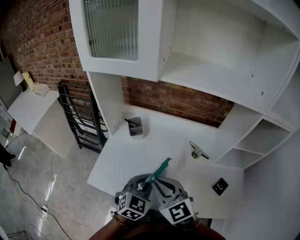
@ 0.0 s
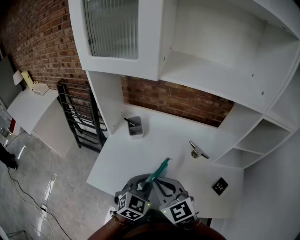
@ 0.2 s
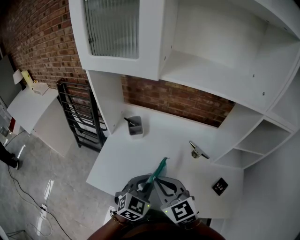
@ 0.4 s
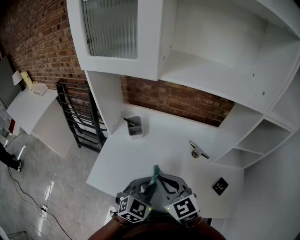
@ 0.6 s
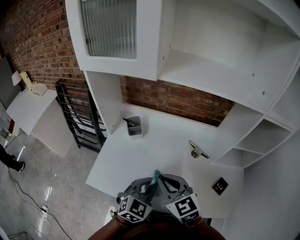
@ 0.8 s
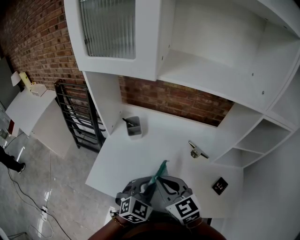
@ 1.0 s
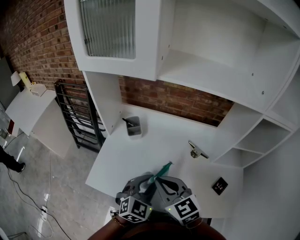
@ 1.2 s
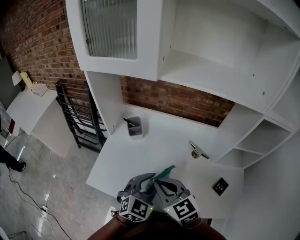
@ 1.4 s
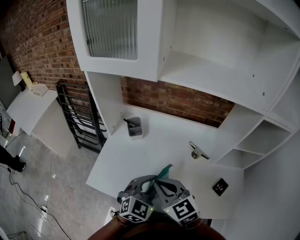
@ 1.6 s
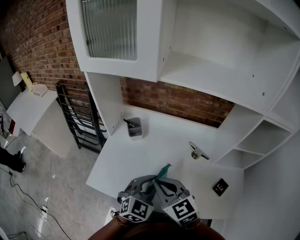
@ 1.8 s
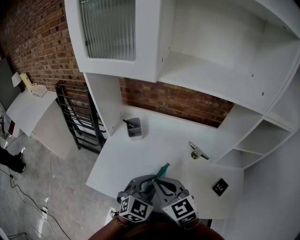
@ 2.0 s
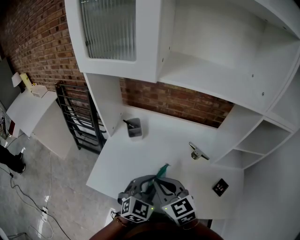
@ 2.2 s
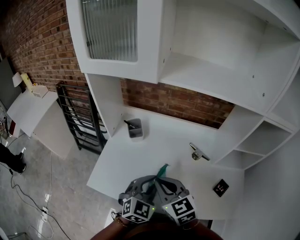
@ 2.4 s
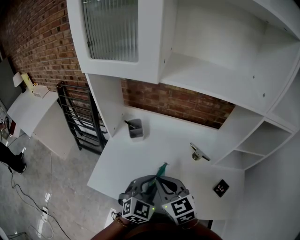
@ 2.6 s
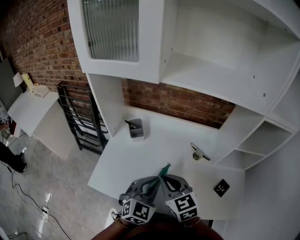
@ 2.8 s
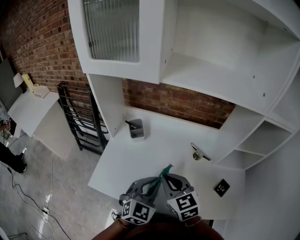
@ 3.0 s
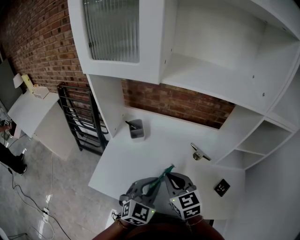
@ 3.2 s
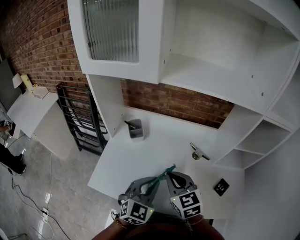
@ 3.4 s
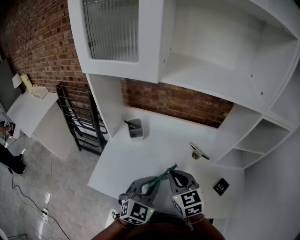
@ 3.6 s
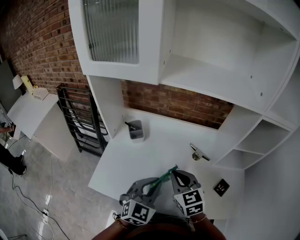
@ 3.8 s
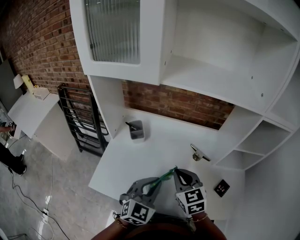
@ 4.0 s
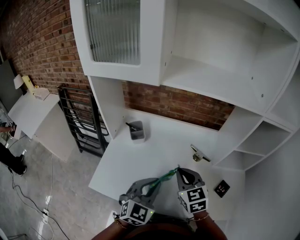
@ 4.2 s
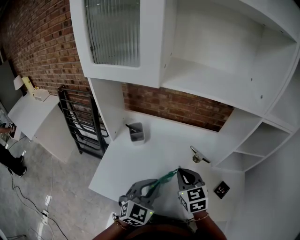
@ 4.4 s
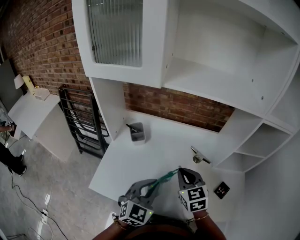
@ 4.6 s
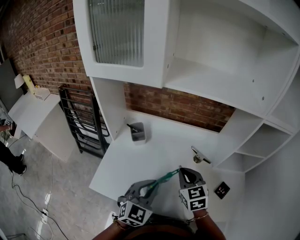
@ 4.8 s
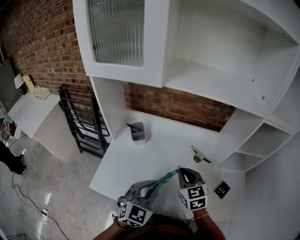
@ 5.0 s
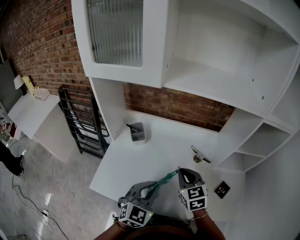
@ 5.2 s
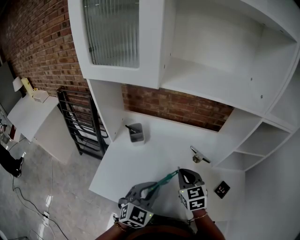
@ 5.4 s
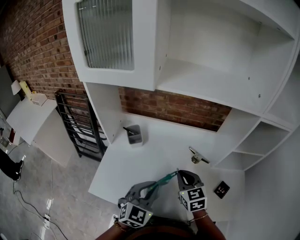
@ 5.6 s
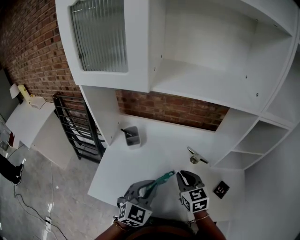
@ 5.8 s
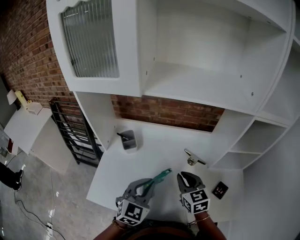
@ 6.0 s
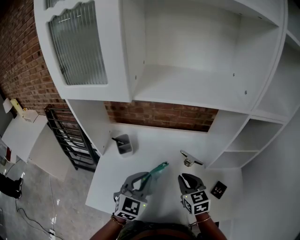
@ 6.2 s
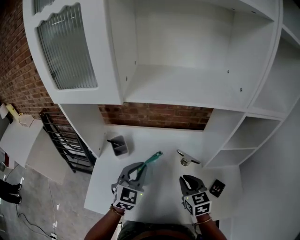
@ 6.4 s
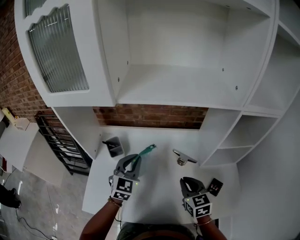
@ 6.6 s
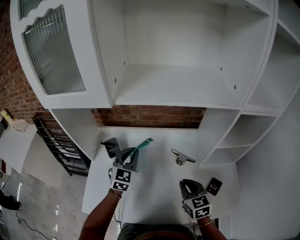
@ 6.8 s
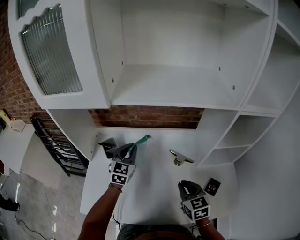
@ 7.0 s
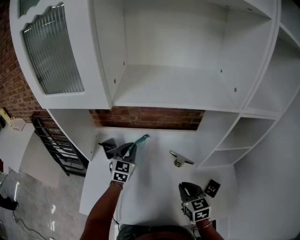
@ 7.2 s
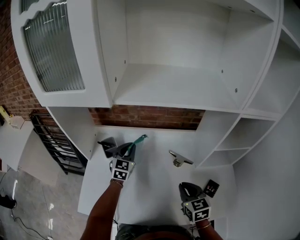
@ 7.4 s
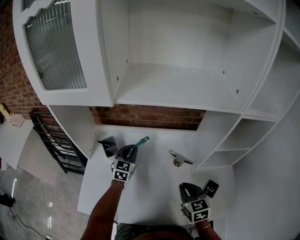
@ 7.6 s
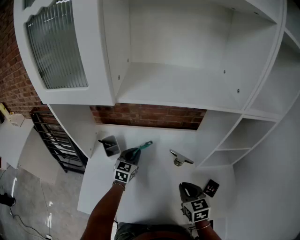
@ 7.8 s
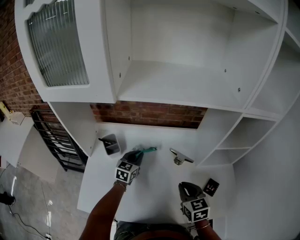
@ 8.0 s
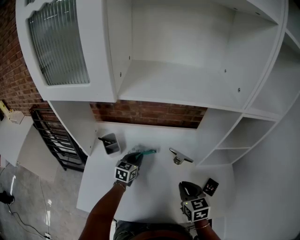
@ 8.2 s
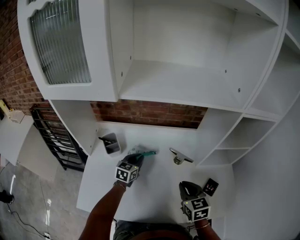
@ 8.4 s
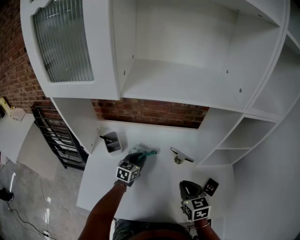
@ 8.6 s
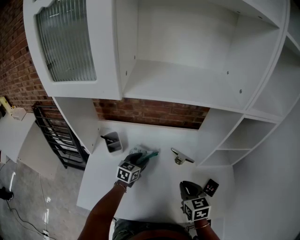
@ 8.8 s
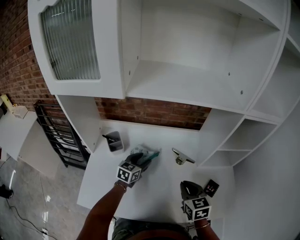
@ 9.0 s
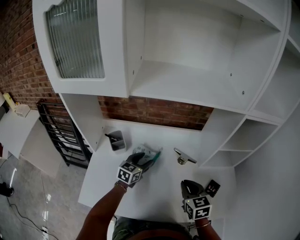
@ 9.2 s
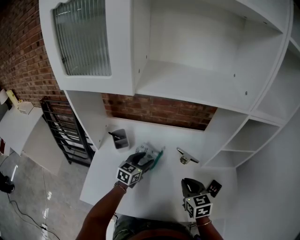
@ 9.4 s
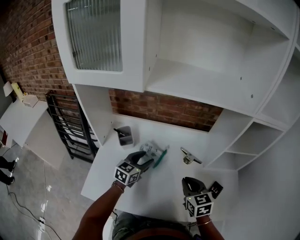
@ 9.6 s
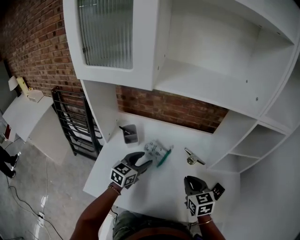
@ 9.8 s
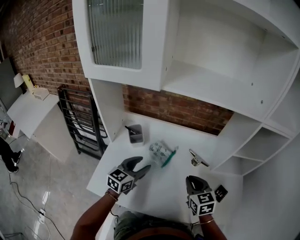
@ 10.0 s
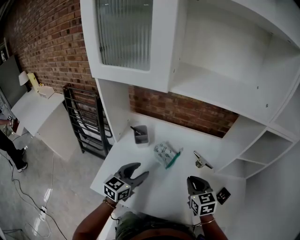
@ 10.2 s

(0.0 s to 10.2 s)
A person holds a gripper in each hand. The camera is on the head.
0.0 s - 3.0 s: There are only small adjustments of the grippers.
3.0 s - 4.4 s: The right gripper shifts about 5 cm to the right.
4.4 s - 5.8 s: The grippers make only small movements.
5.8 s - 7.2 s: The right gripper goes roughly 10 cm to the right. Meanwhile the left gripper shifts roughly 25 cm forward.
7.2 s - 8.8 s: The left gripper heads downward, covering approximately 10 cm, and rotates about 30 degrees.
8.8 s - 10.2 s: The left gripper goes some 20 cm backward, upward and to the left. The right gripper travels to the left by roughly 5 cm.

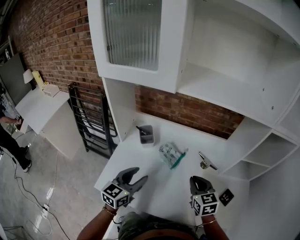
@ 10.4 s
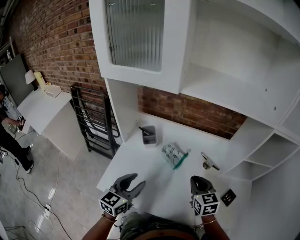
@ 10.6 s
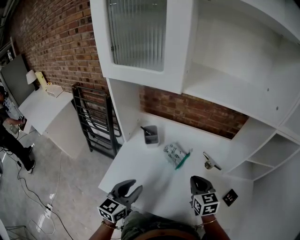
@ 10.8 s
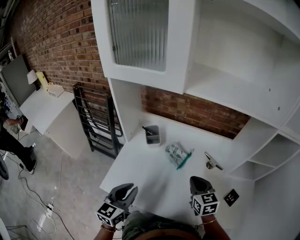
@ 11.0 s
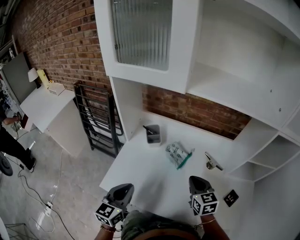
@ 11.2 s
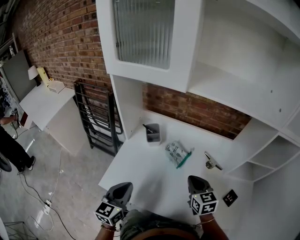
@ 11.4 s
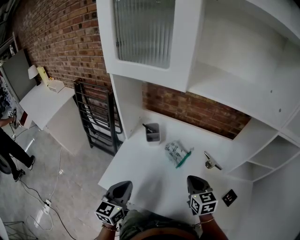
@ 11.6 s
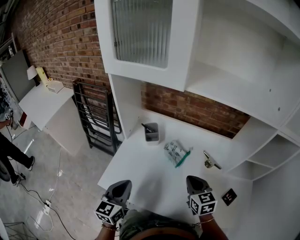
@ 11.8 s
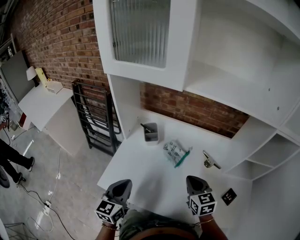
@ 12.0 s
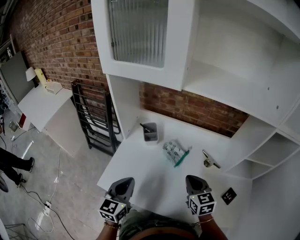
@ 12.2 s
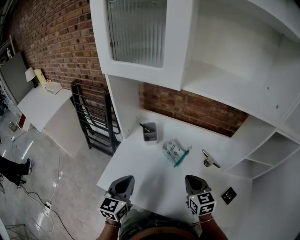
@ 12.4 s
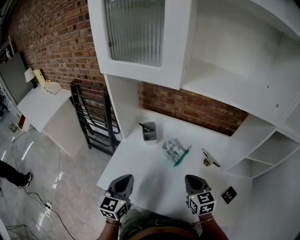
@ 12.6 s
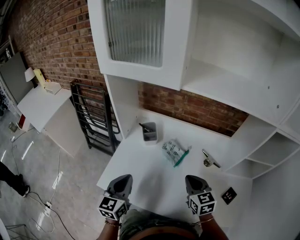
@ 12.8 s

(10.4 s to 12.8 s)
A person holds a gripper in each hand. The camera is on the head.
10.4 s - 11.6 s: The left gripper goes approximately 10 cm backward and to the left, and closes.
11.6 s - 12.8 s: The grippers stay close to where they were, moving slightly.

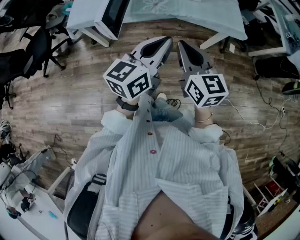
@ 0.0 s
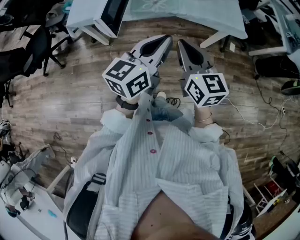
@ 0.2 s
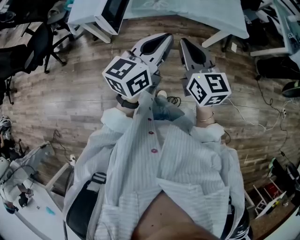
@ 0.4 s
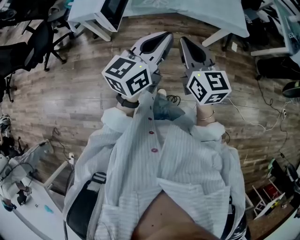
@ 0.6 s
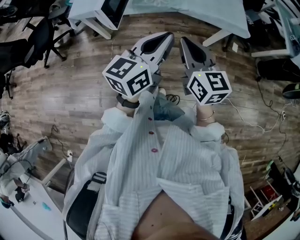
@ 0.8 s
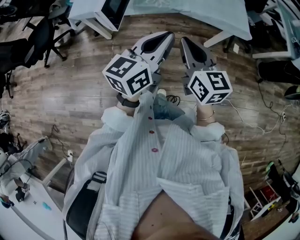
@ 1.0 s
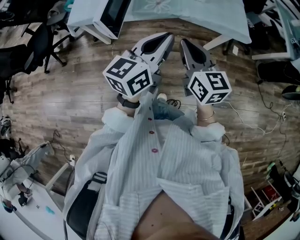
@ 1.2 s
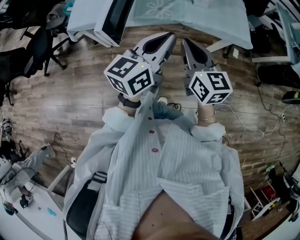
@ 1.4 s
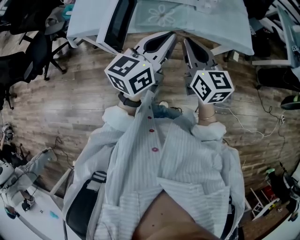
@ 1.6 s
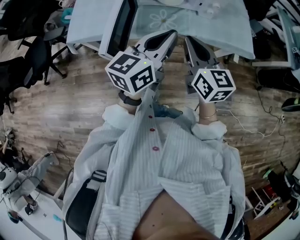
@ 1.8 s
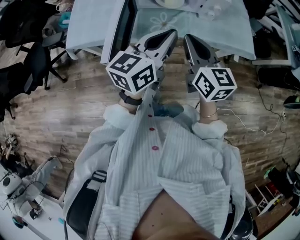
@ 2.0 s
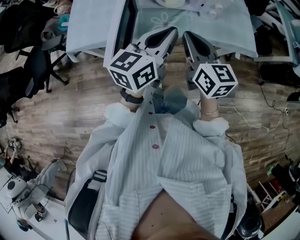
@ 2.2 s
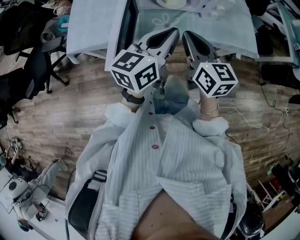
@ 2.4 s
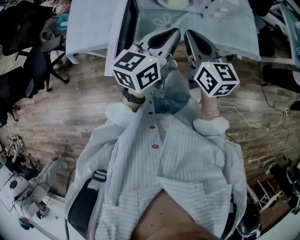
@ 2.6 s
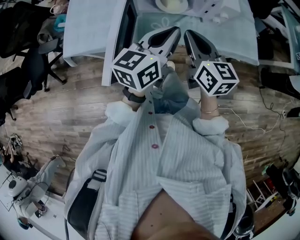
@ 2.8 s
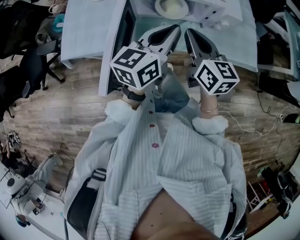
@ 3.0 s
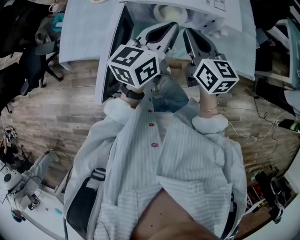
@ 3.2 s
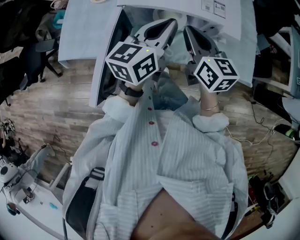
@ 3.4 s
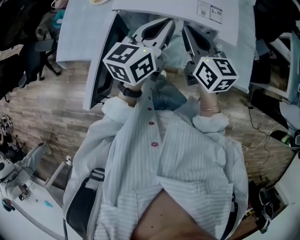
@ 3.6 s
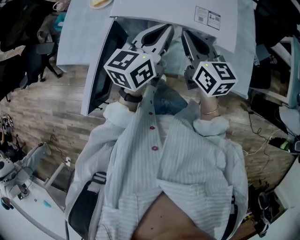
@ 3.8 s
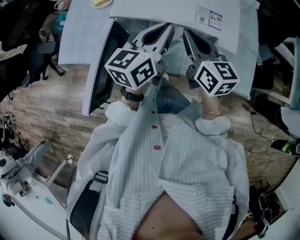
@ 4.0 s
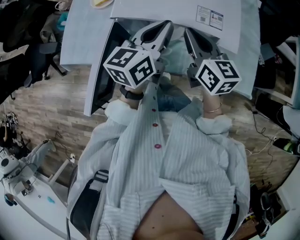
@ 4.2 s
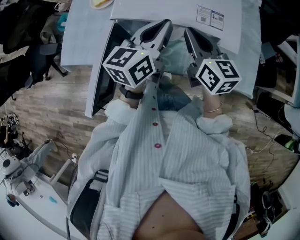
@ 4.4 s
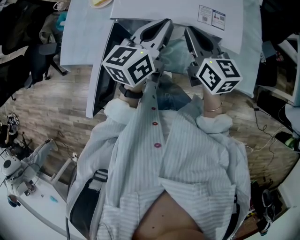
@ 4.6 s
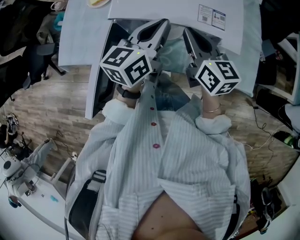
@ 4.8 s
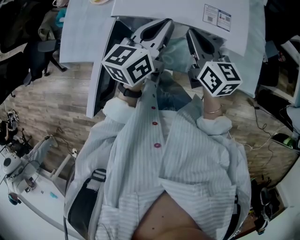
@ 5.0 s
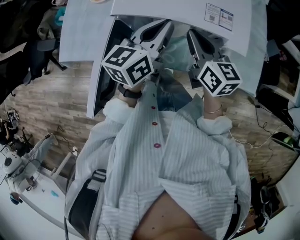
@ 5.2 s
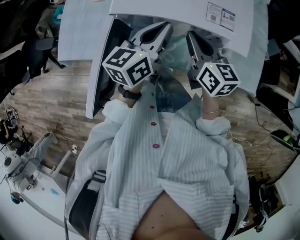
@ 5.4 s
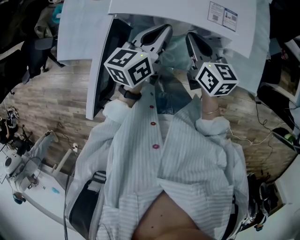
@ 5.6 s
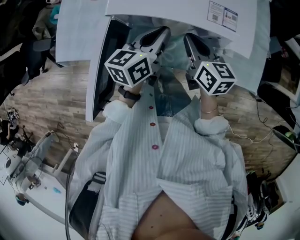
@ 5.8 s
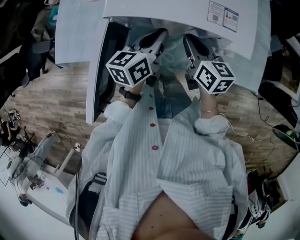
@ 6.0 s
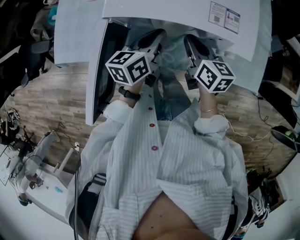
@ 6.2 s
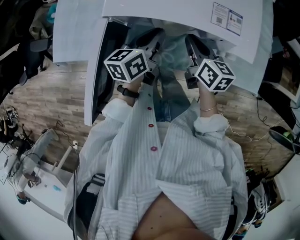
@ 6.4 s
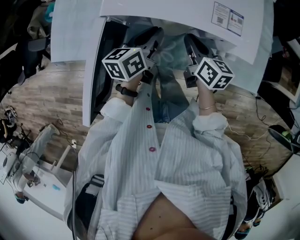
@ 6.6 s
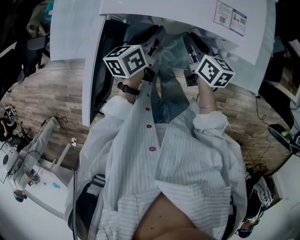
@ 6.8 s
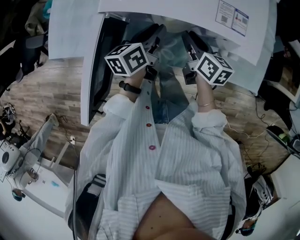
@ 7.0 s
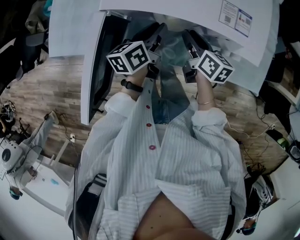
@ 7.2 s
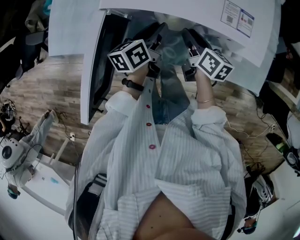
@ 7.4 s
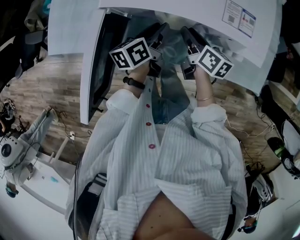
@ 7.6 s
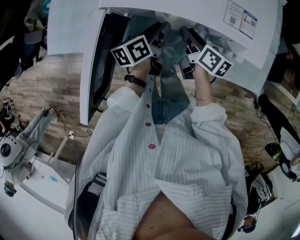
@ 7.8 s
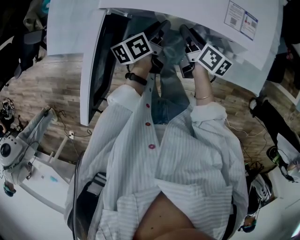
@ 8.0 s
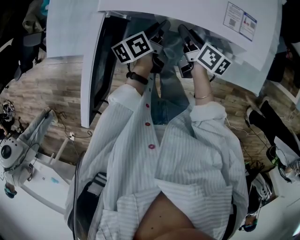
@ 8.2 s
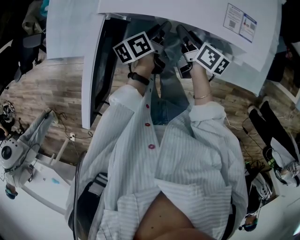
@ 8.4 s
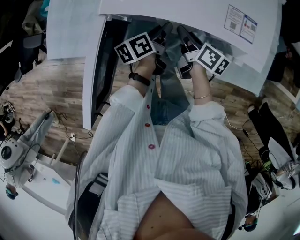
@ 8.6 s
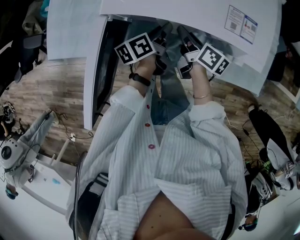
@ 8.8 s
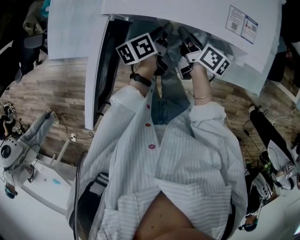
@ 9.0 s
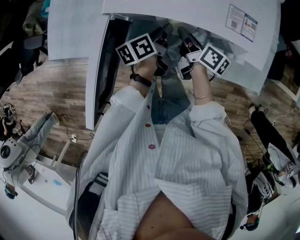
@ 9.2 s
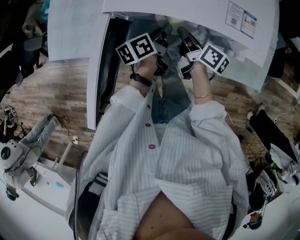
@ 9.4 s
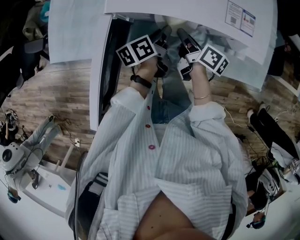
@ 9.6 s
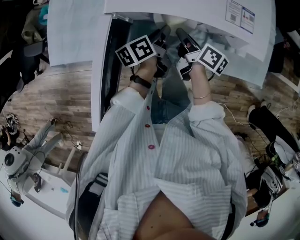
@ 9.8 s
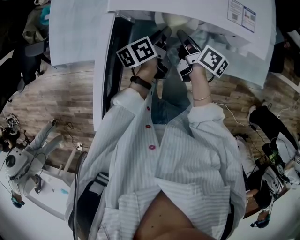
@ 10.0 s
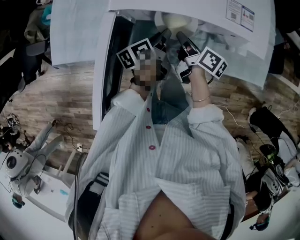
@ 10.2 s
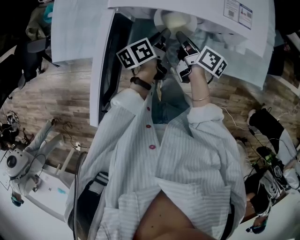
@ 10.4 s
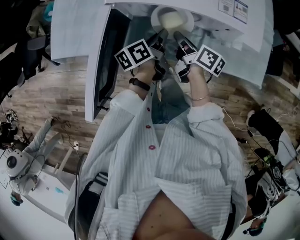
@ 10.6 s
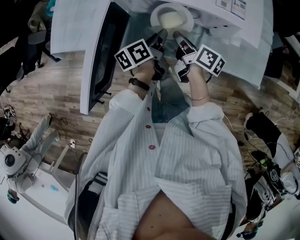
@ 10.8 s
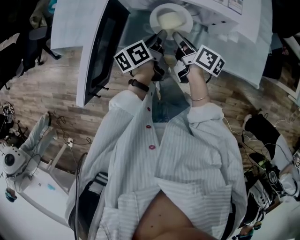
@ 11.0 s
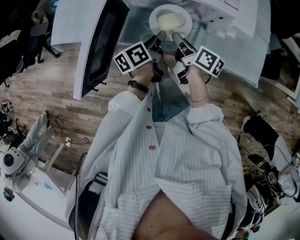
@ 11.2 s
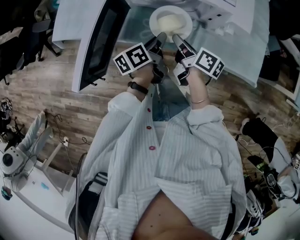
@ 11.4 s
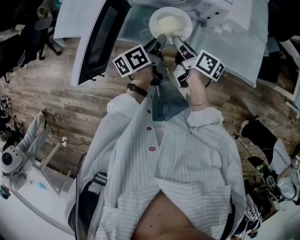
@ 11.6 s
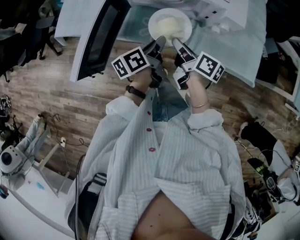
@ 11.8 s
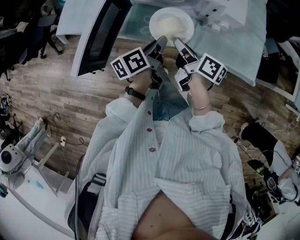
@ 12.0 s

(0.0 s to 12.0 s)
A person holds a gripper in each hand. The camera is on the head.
0.0 s - 1.6 s: The grippers both shift forward by roughly 15 cm.
1.6 s - 3.0 s: The two grippers go some 20 cm forward.
3.0 s - 4.4 s: Both grippers move forward, some 15 cm.
4.4 s - 6.0 s: The grippers both shift downward by some 10 cm.
6.0 s - 7.6 s: Both grippers move downward, approximately 10 cm. The left gripper changes its angle by approximately 20 degrees, and opens, while the right gripper swivels roughly 20 degrees, and opens up.
7.6 s - 10.4 s: There are only small adjustments of the grippers.
10.4 s - 12.0 s: Both grippers travel together backward and upward, about 15 cm.
